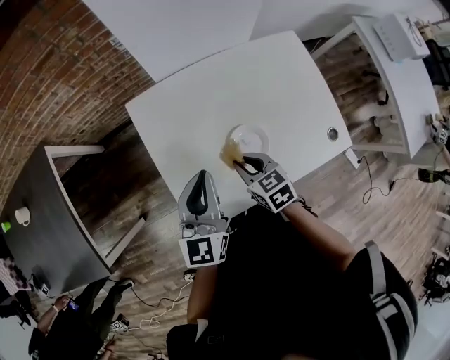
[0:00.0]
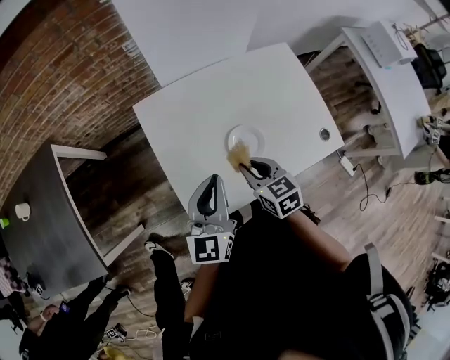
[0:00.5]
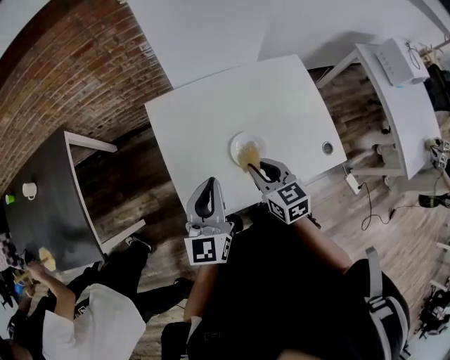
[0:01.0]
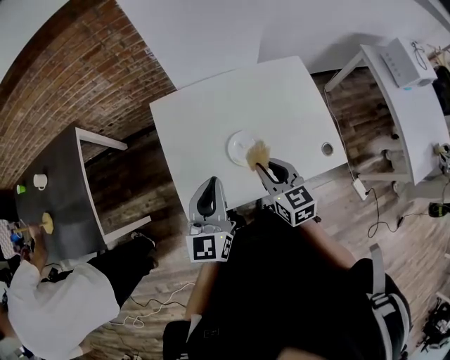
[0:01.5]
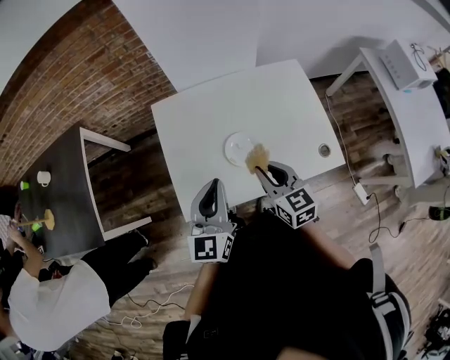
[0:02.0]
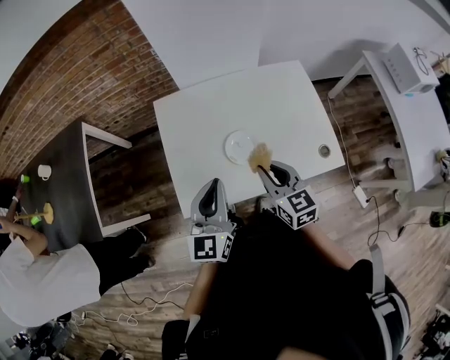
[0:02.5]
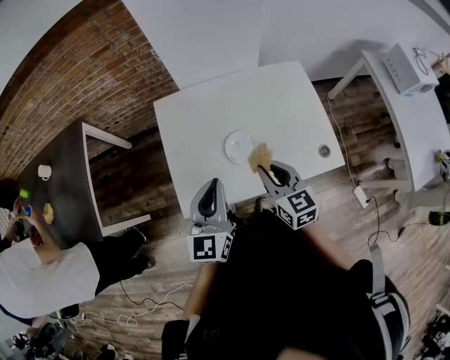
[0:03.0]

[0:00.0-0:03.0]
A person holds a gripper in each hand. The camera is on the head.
0:00.0 to 0:01.5: The right gripper is displaced upward, to the right and backward by approximately 15 cm, and changes its angle by approximately 20 degrees. The left gripper shifts roughly 10 cm backward.
0:01.5 to 0:03.0: There are only small adjustments of the grippers.

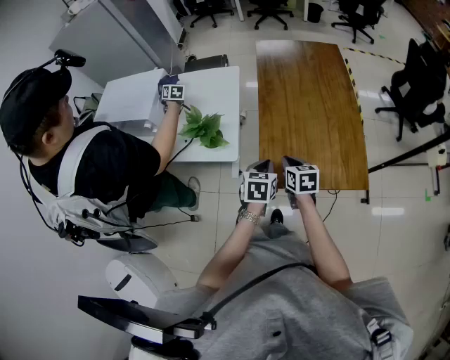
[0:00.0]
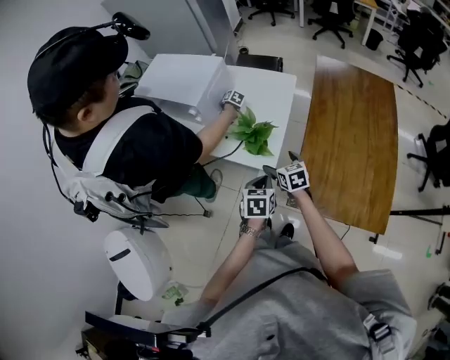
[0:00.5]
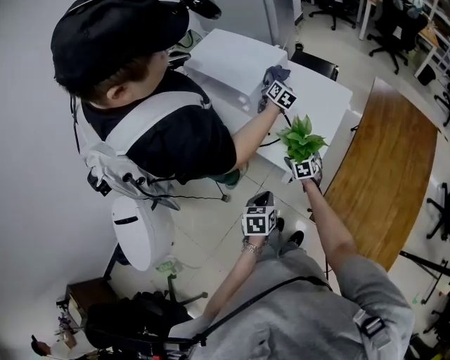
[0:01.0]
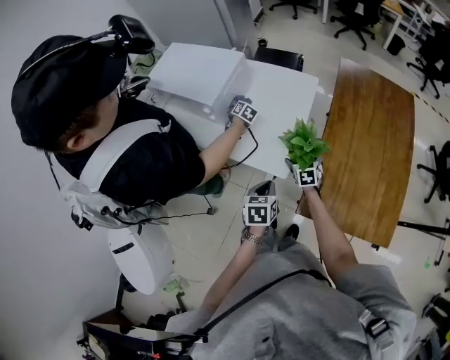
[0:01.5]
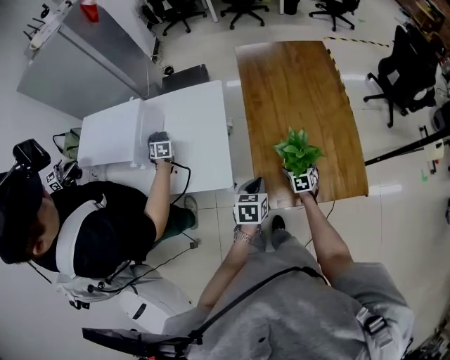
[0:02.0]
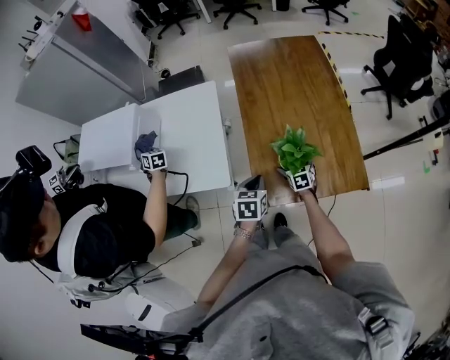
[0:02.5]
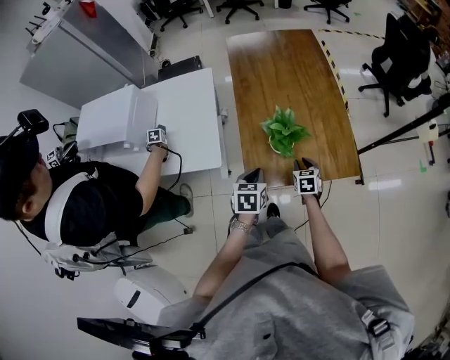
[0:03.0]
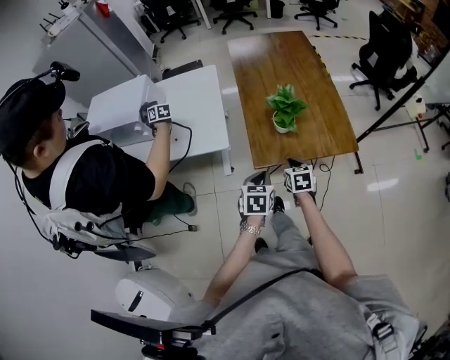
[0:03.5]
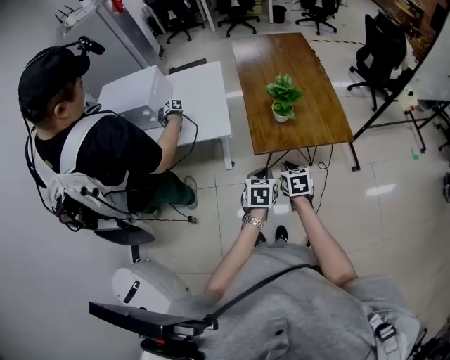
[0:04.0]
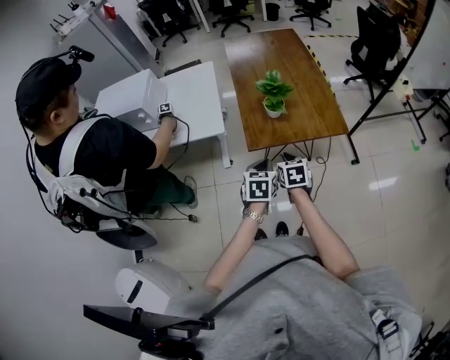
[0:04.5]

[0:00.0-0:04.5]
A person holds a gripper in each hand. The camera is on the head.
0:00.0 to 0:02.0: The right gripper shifts roughly 20 cm downward, rotates some 20 degrees, and opens up.
0:02.0 to 0:04.5: The left gripper is displaced backward by approximately 30 cm, while the right gripper shifts about 40 cm backward and upward, and closes its fingers.

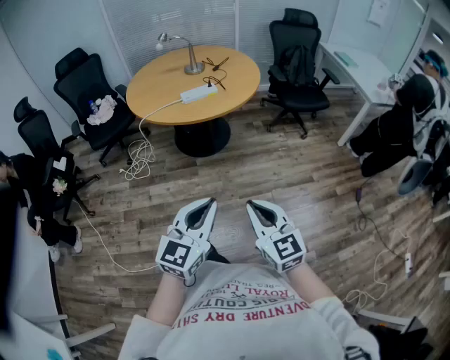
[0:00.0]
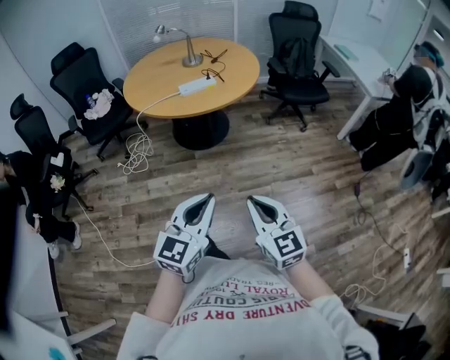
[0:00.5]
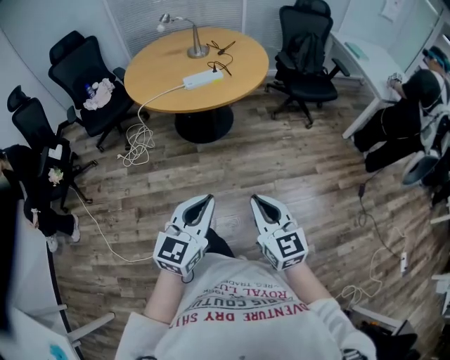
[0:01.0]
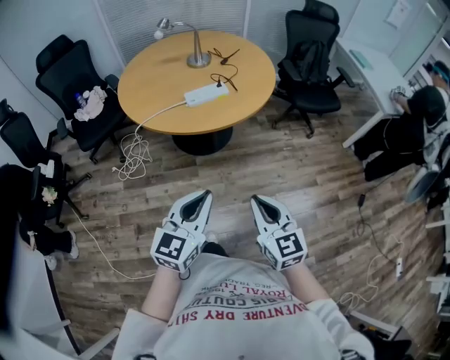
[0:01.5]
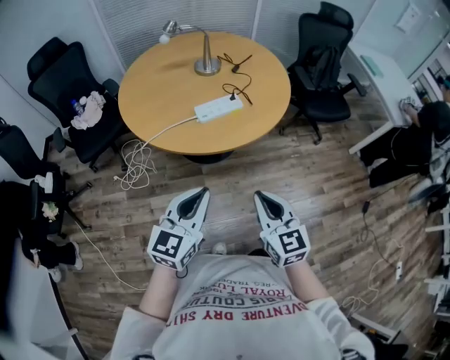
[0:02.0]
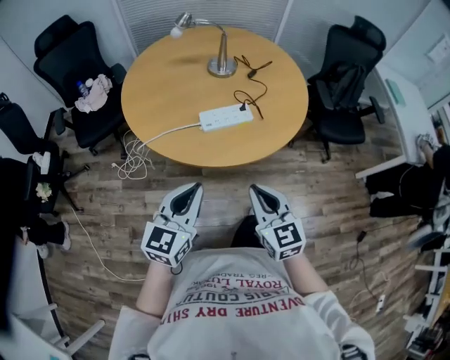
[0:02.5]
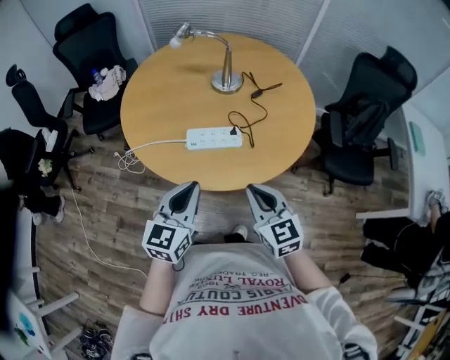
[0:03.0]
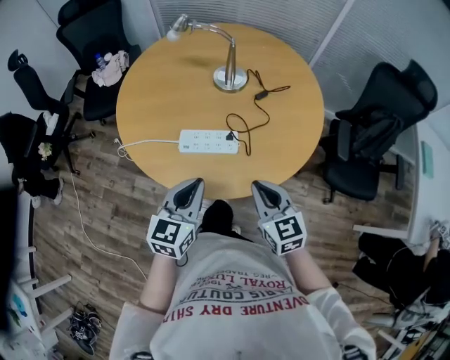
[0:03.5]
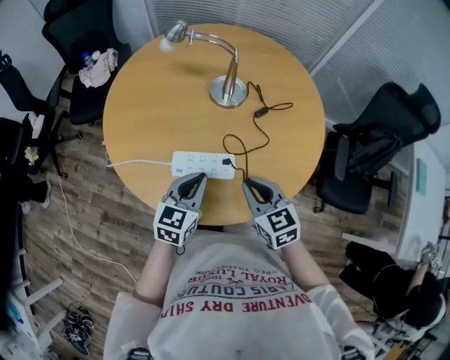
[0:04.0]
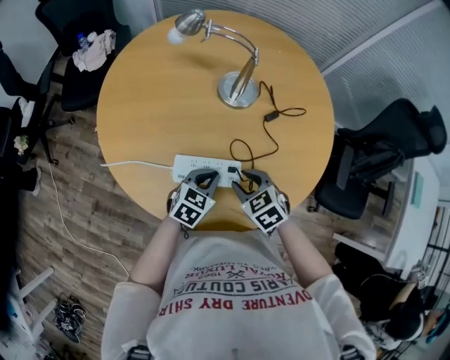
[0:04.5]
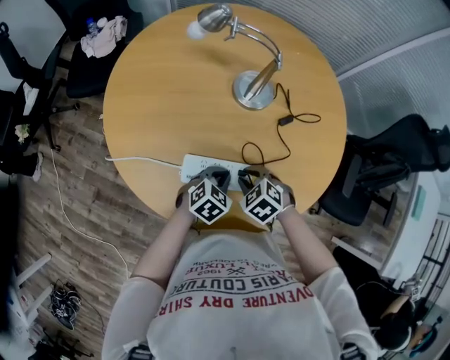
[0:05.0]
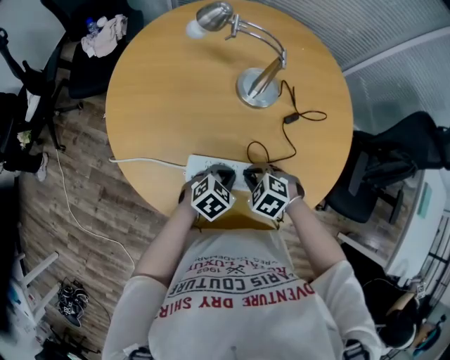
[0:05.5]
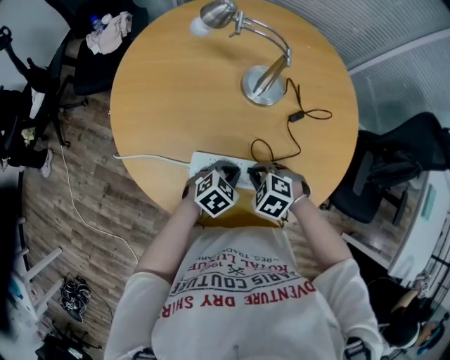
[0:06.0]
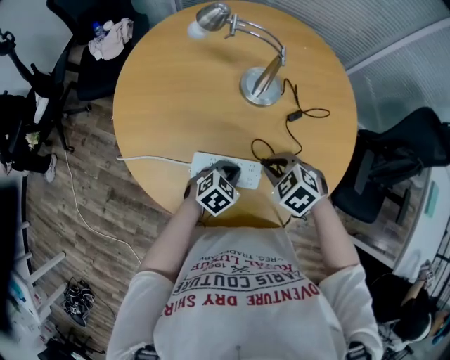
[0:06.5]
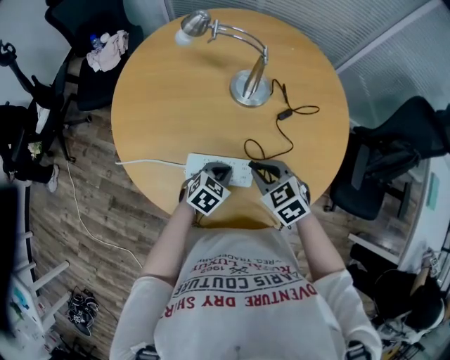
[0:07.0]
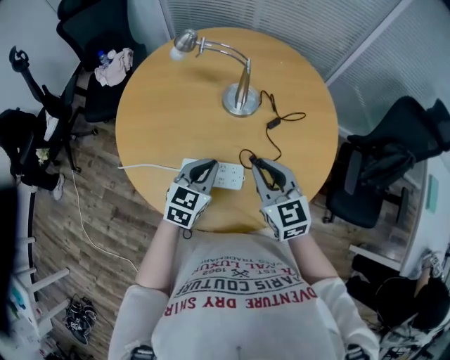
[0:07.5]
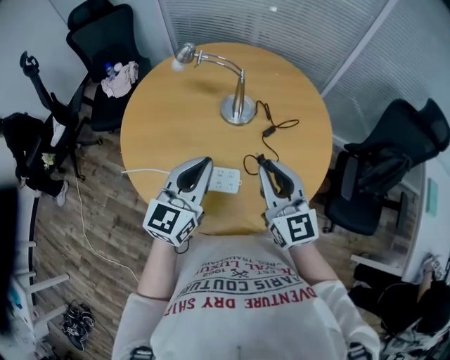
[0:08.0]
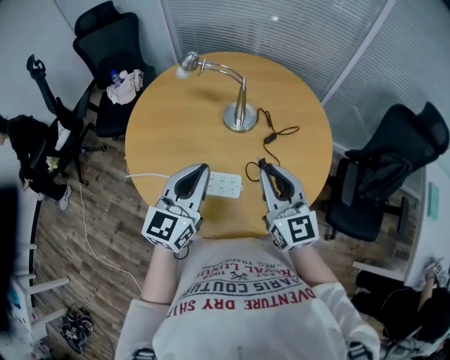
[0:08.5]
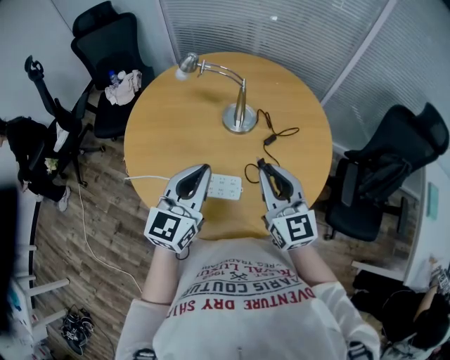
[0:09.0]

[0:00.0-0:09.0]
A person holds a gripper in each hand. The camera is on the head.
0:00.0 to 0:02.0: The left gripper moves forward and to the left, about 35 cm. Meanwhile the right gripper heads forward, covering some 30 cm.
0:02.0 to 0:04.5: Both grippers are carried some 50 cm. The right gripper tilts its fingers roughly 40 degrees downward, and opens its fingers, while the left gripper points its fingers about 30 degrees further downward.
0:04.5 to 0:07.0: The right gripper closes its fingers.
0:07.0 to 0:09.0: The right gripper goes about 20 cm upward, and tips its fingers upward by some 50 degrees. Meanwhile the left gripper shifts approximately 30 cm upward, and points its fingers approximately 50 degrees further upward.

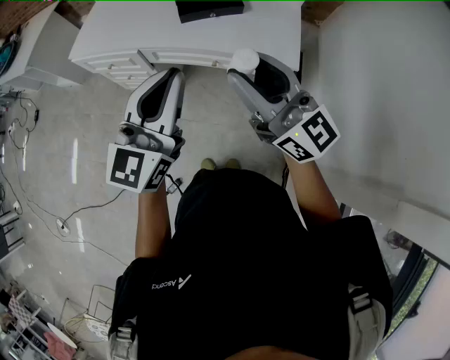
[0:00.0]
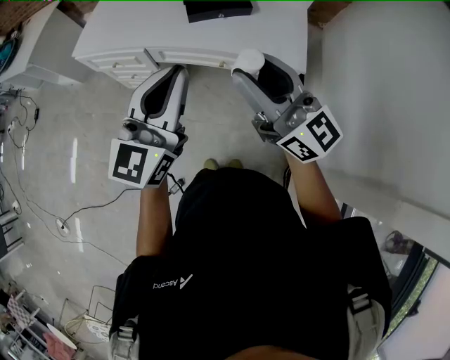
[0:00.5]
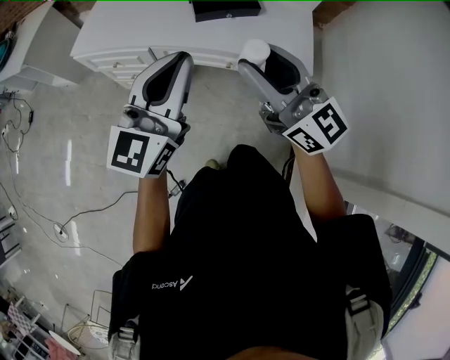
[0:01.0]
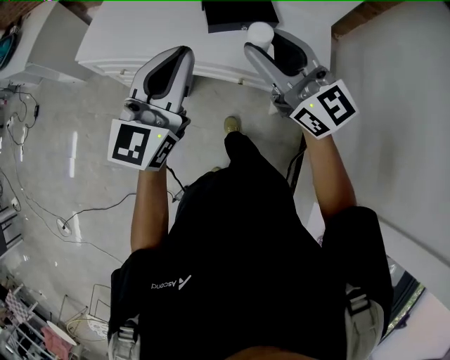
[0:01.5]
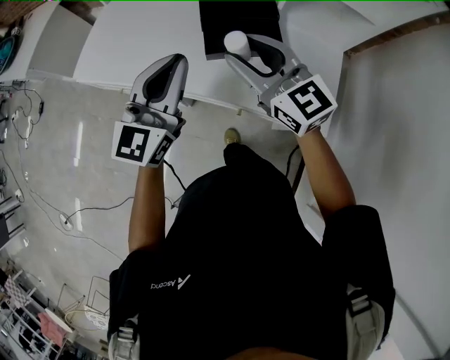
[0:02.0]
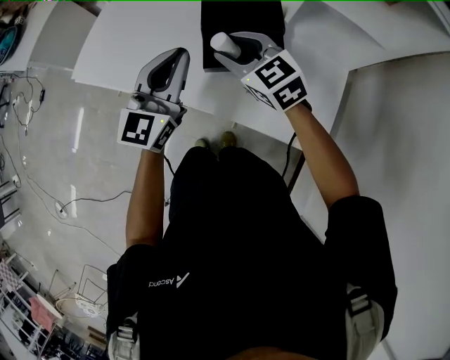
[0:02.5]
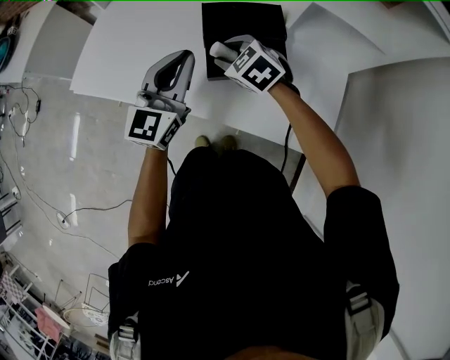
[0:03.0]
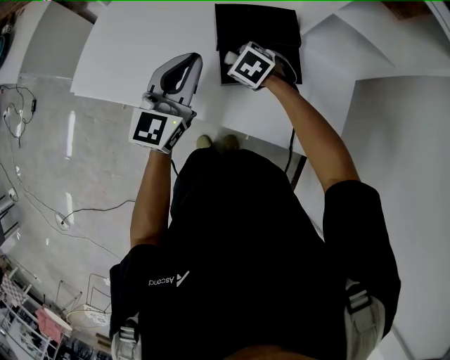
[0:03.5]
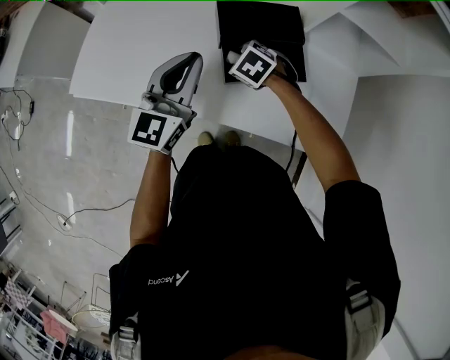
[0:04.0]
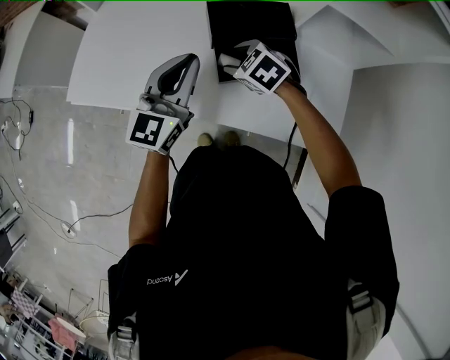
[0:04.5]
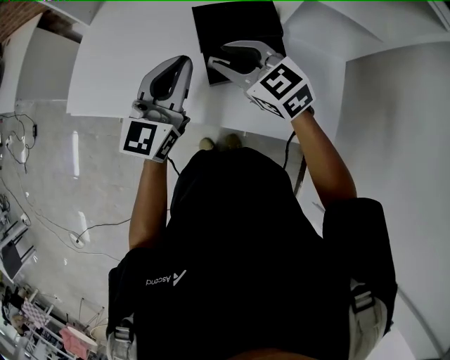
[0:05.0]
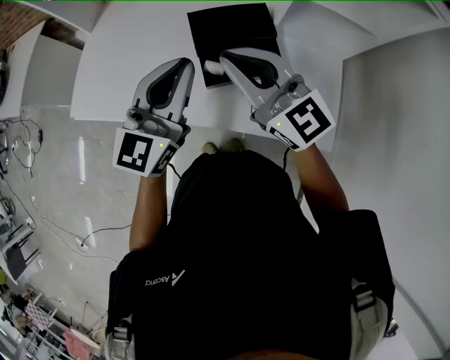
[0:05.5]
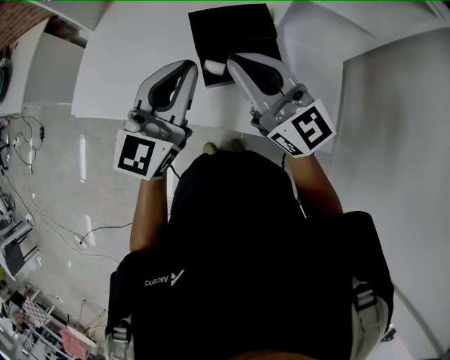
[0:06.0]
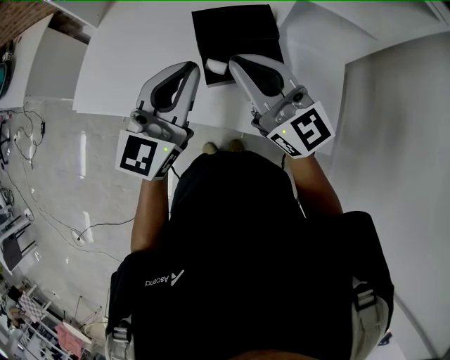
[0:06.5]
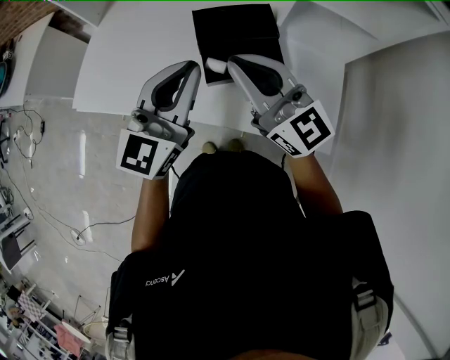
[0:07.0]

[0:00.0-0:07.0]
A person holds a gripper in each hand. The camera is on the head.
0:00.0 to 0:02.0: The two grippers go approximately 30 cm forward. The right gripper changes its angle by roughly 20 degrees.
0:02.0 to 0:03.5: The right gripper moves downward and forward, roughly 30 cm, and tips its fingers downward by some 60 degrees. The left gripper travels forward and downward by some 15 cm.
0:03.5 to 0:05.0: The right gripper goes roughly 15 cm upward, and tips its fingers upward by approximately 40 degrees.
0:05.0 to 0:07.0: The right gripper goes some 10 cm upward, angles its fingers upward, by some 30 degrees, and closes its fingers, while the left gripper ends up approximately 5 cm from where it was.

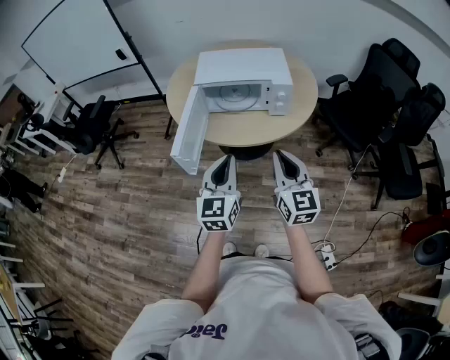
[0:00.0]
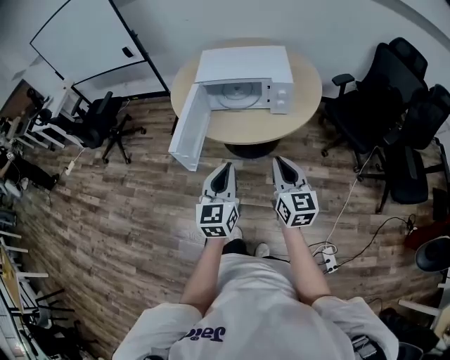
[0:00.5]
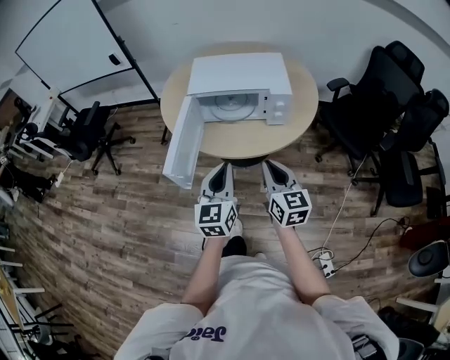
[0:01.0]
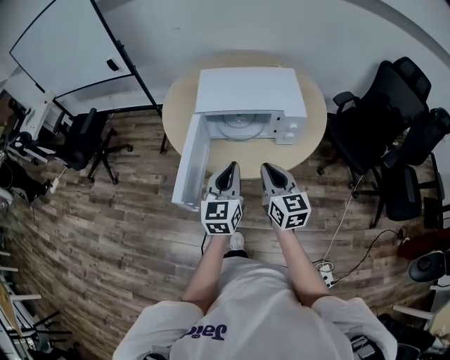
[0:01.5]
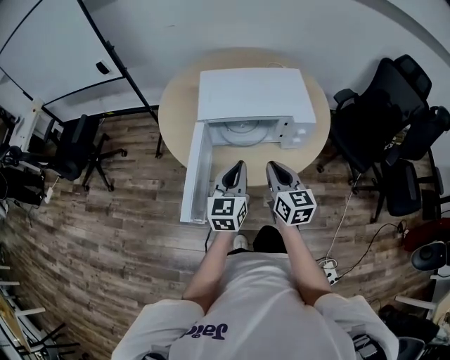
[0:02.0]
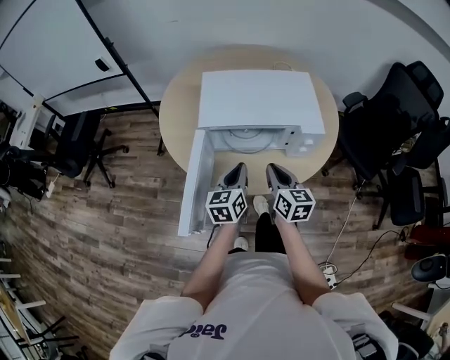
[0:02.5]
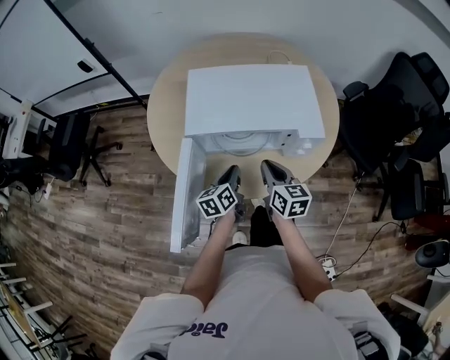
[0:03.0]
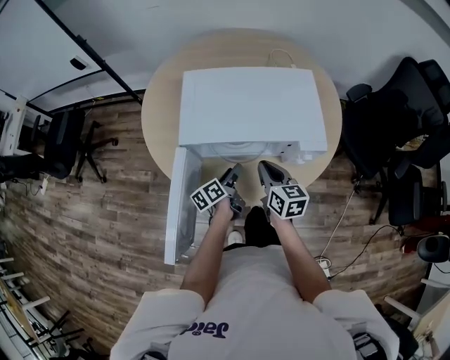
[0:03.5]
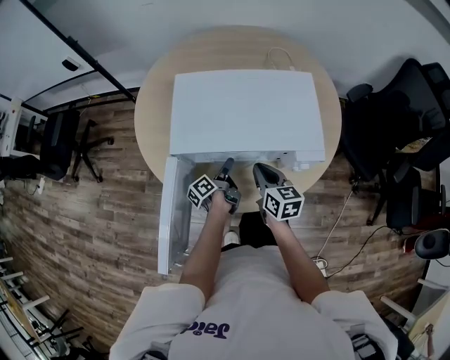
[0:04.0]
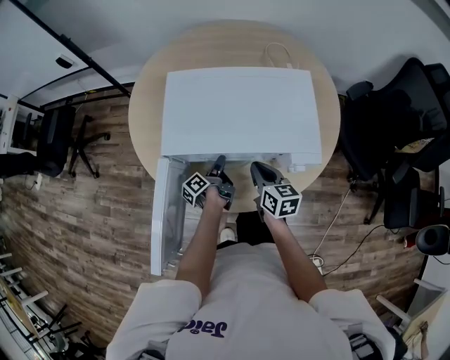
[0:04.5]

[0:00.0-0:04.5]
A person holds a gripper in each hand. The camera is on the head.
0:00.0 to 0:02.0: The right gripper ends up roughly 25 cm from where it was.
0:02.0 to 0:04.5: The right gripper ends up roughly 25 cm from where it was, and swivels roughly 20 degrees.
